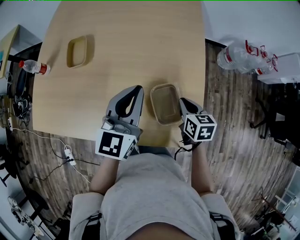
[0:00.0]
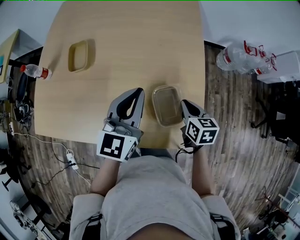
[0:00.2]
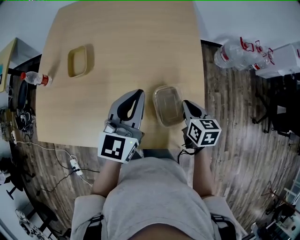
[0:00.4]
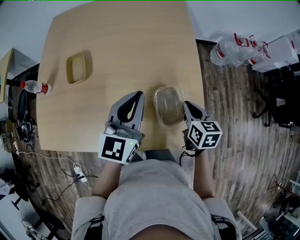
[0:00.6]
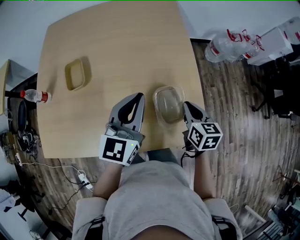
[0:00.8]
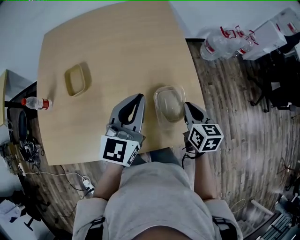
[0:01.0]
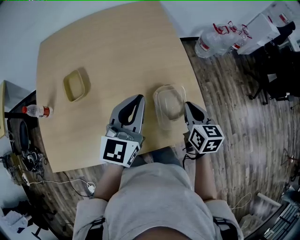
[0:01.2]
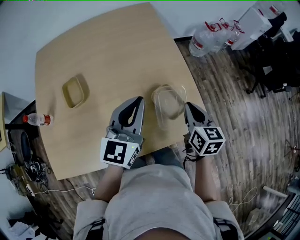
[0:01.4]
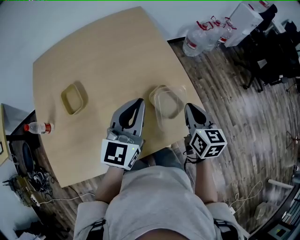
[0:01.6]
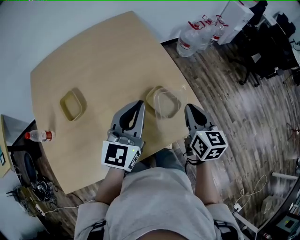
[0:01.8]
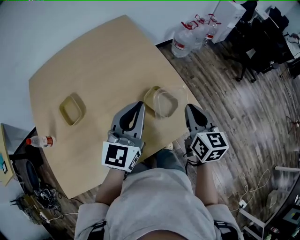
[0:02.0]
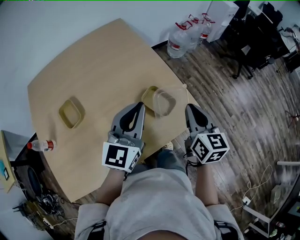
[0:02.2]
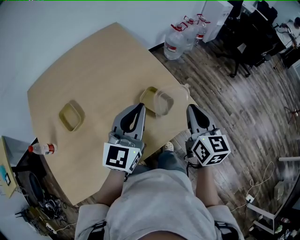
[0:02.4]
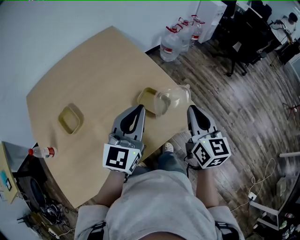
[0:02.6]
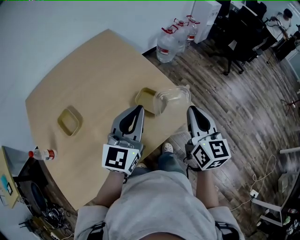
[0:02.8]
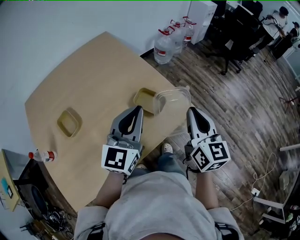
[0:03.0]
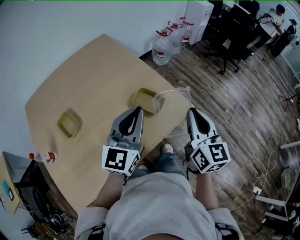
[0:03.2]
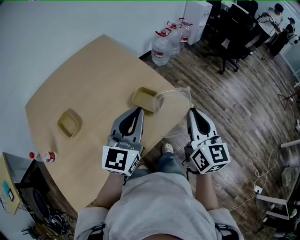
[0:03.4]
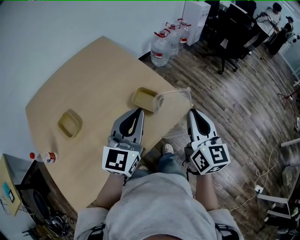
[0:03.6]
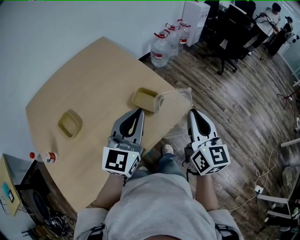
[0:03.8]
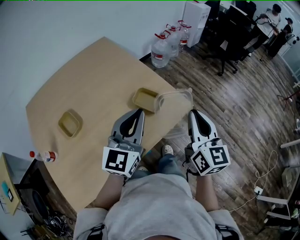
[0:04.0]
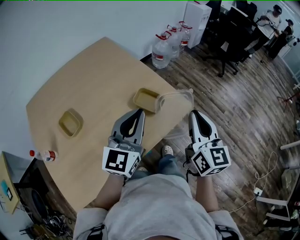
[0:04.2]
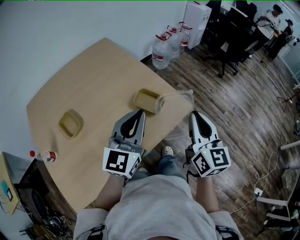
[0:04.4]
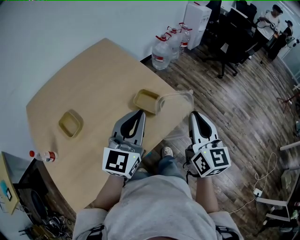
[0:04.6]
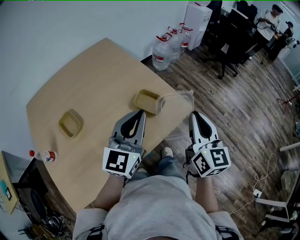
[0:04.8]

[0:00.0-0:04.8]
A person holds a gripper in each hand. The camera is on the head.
0:00.0 to 0:01.6: The right gripper travels upward by roughly 15 cm, and swivels roughly 40 degrees; the left gripper shifts by roughly 5 cm, and swivels about 30 degrees.
0:01.6 to 0:03.2: The right gripper is displaced backward, upward and to the right by some 20 cm, and turns by about 30 degrees, while the left gripper heads backward and to the right, covering approximately 10 cm.
0:03.2 to 0:04.8: The grippers make only small movements.

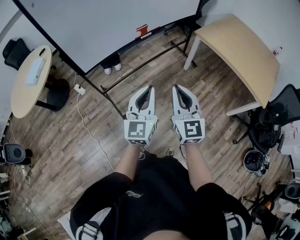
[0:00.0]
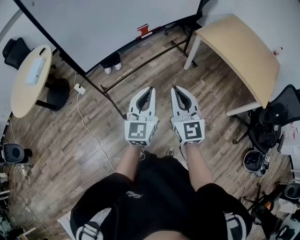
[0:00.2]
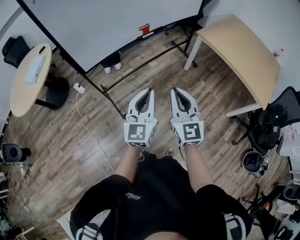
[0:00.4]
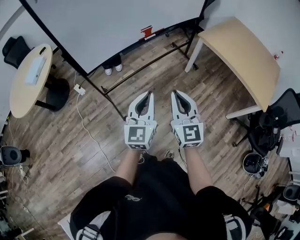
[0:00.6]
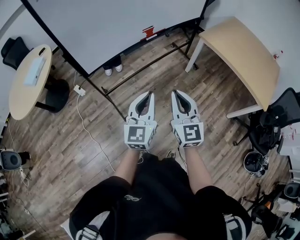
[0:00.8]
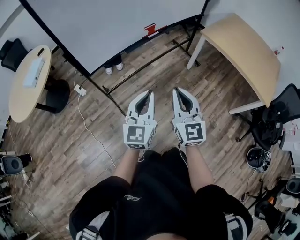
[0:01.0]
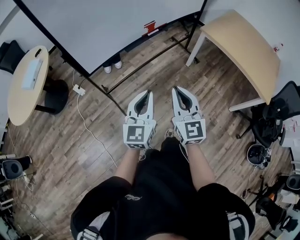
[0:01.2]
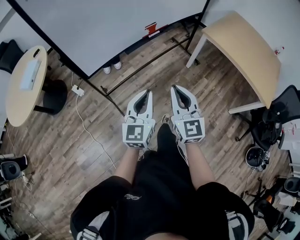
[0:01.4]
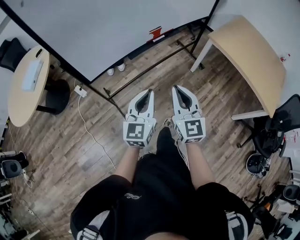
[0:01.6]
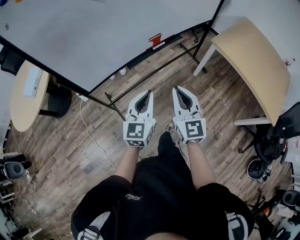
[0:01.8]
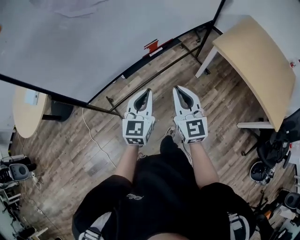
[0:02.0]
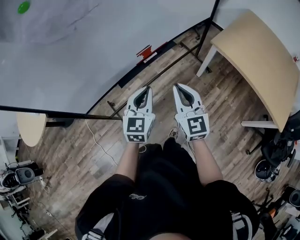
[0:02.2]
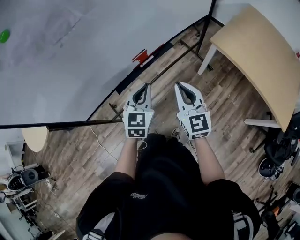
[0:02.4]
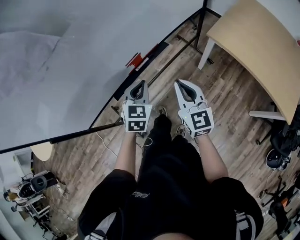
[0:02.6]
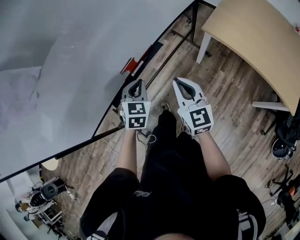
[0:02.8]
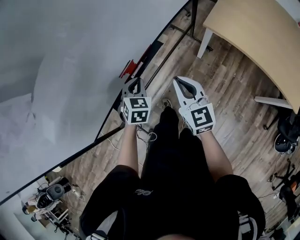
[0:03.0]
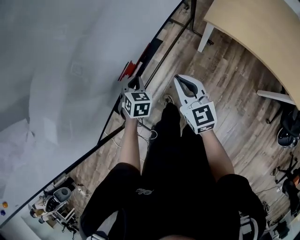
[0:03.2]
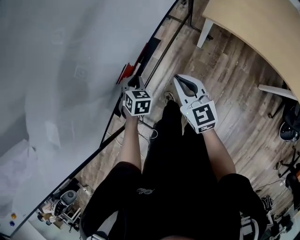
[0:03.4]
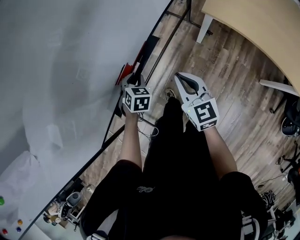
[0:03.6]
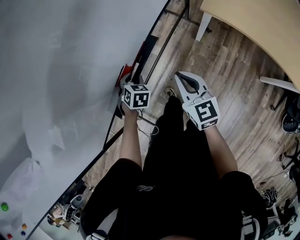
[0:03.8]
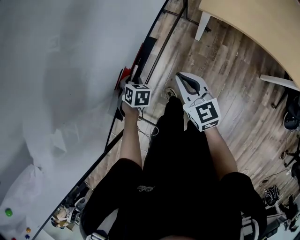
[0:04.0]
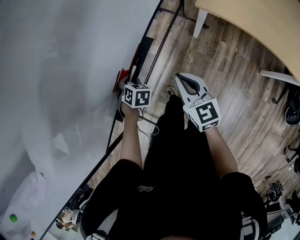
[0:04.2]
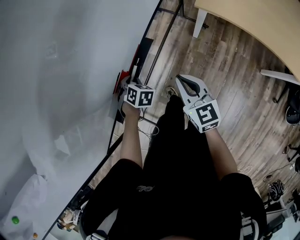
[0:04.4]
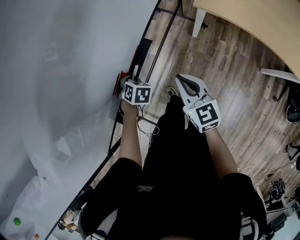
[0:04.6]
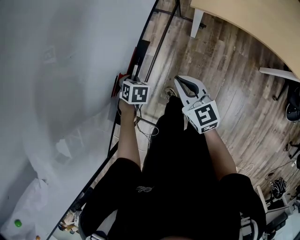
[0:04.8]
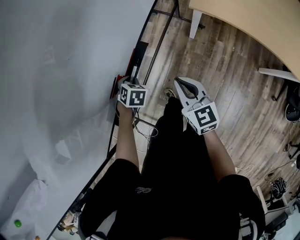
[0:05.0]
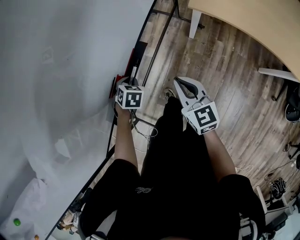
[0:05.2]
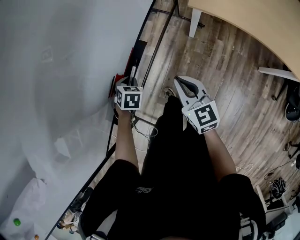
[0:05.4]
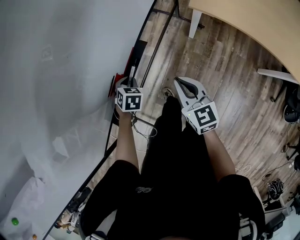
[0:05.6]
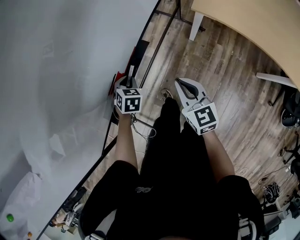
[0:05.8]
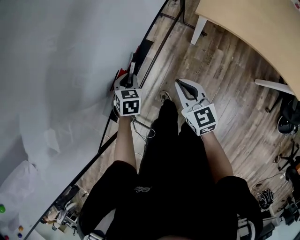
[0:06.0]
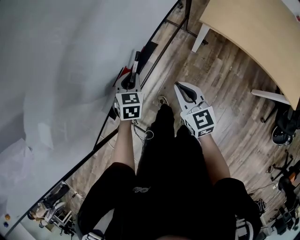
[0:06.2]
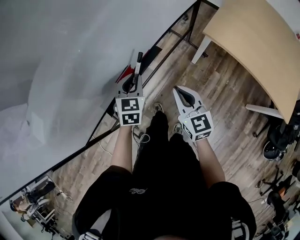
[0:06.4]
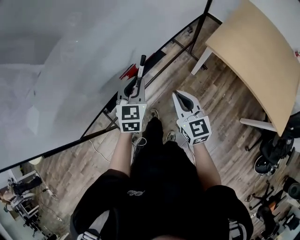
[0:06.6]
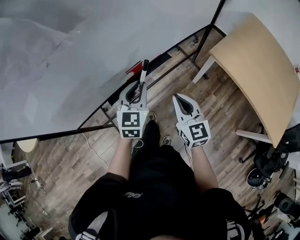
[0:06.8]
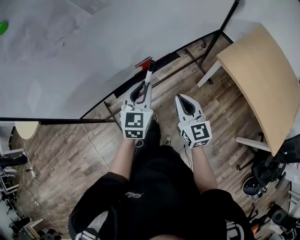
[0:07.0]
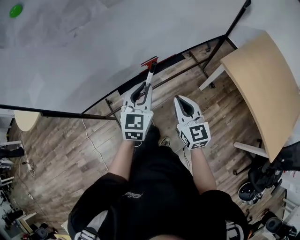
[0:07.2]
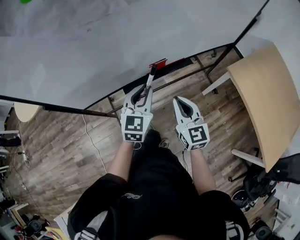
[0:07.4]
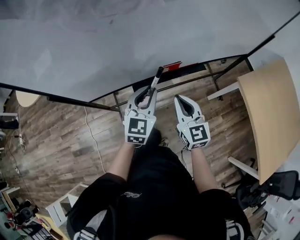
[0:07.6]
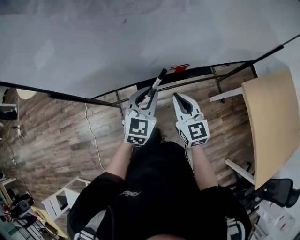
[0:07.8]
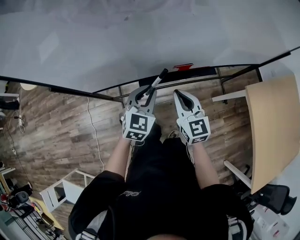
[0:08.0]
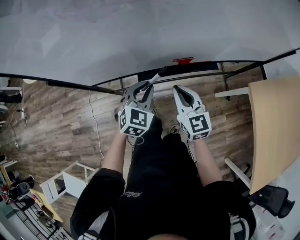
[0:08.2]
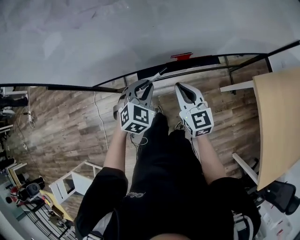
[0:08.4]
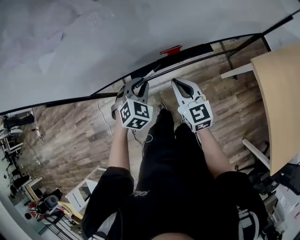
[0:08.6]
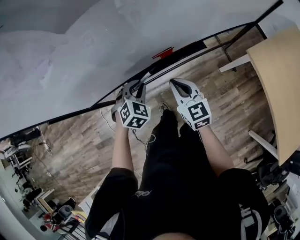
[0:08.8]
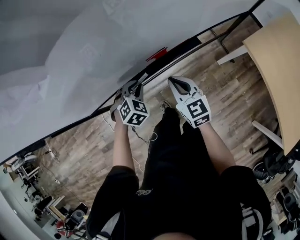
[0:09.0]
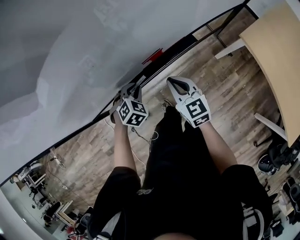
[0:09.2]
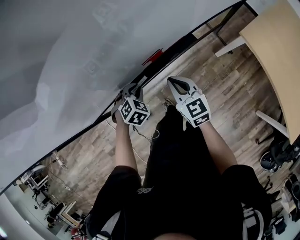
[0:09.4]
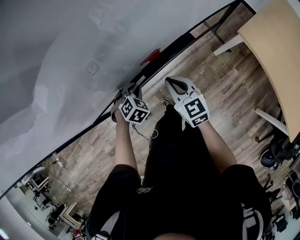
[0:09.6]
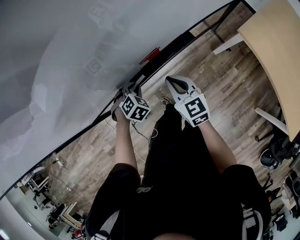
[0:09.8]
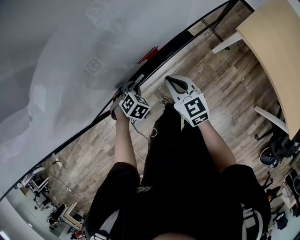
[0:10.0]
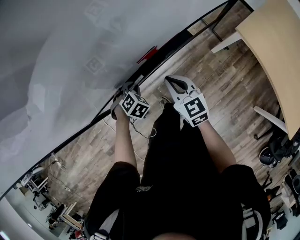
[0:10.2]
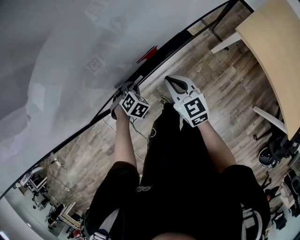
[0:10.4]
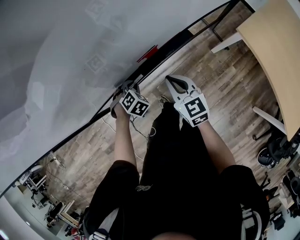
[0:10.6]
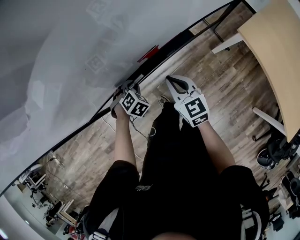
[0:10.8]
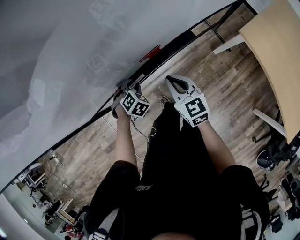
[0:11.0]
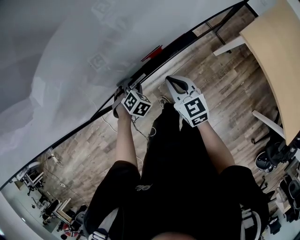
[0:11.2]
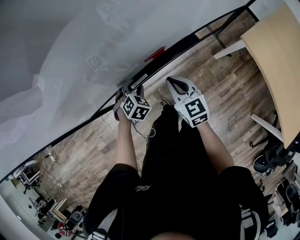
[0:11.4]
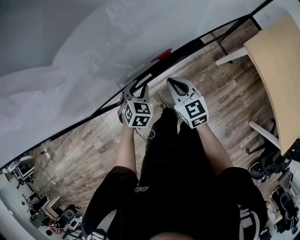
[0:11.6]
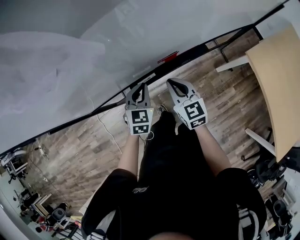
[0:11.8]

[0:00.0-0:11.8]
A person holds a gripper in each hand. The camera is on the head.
0:00.0 to 0:01.4: The right gripper moves to the left and forward, approximately 10 cm. Meanwhile the left gripper moves to the left, forward and downward, some 15 cm.
0:01.4 to 0:03.0: The pair of grippers is taken forward, some 50 cm. The left gripper tilts its fingers roughly 40 degrees downward.
0:03.0 to 0:04.4: The left gripper goes roughly 15 cm downward and forward, and swivels approximately 30 degrees. Meanwhile the right gripper is displaced downward by approximately 10 cm.
0:04.4 to 0:06.0: The left gripper shifts by some 5 cm, and changes its angle by some 20 degrees.
0:06.0 to 0:07.4: The right gripper goes some 20 cm to the left, upward and backward, and changes its angle by approximately 30 degrees. The left gripper travels upward, backward and to the left by about 30 cm, and angles its fingers upward, by some 40 degrees.
0:07.4 to 0:08.8: The right gripper goes some 15 cm forward and downward, while the left gripper shifts roughly 15 cm downward and forward, and angles its fingers downward, by roughly 40 degrees.
0:08.8 to 0:10.4: The left gripper goes about 10 cm downward, and swivels some 20 degrees.
0:10.4 to 0:11.8: The right gripper shifts by some 5 cm. Meanwhile the left gripper heads upward, covering about 10 cm, and tilts its fingers some 30 degrees upward.

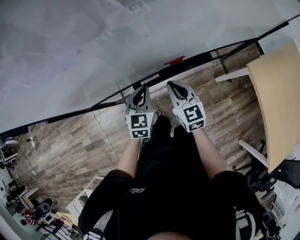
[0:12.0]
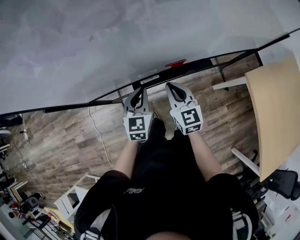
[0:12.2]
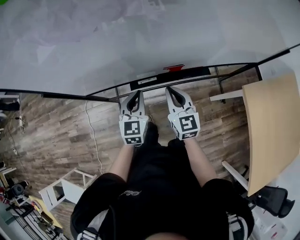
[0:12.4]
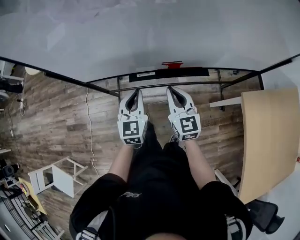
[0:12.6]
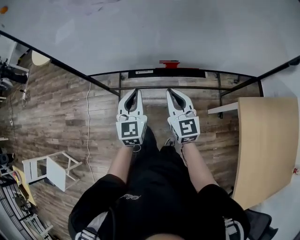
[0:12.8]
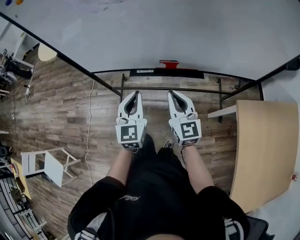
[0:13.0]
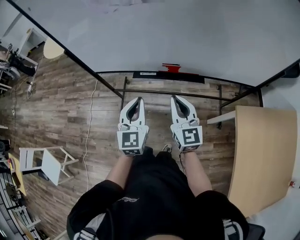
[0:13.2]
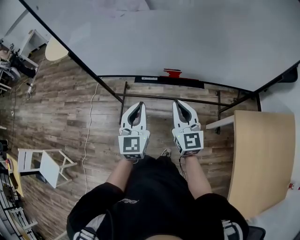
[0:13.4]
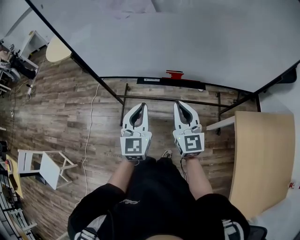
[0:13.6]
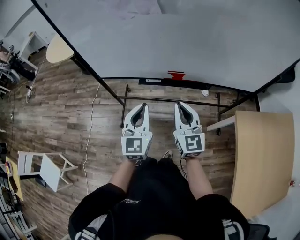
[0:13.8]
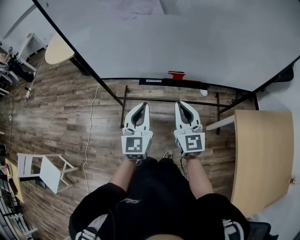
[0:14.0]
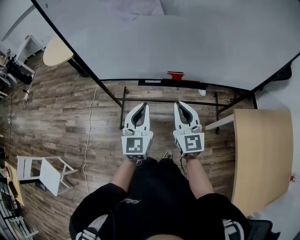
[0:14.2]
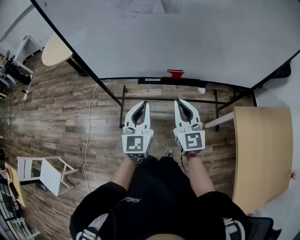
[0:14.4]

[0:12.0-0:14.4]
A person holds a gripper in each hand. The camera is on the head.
0:12.0 to 0:13.2: The left gripper travels backward and upward by approximately 25 cm, and rotates roughly 30 degrees. Meanwhile the right gripper heads backward, upward and to the right, covering roughly 20 cm, and rotates approximately 20 degrees.
0:13.2 to 0:14.4: The left gripper shifts by approximately 5 cm; the right gripper ends up about 5 cm from where it was.

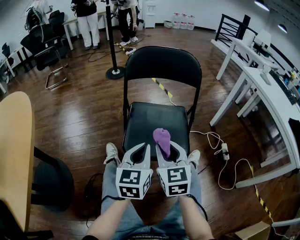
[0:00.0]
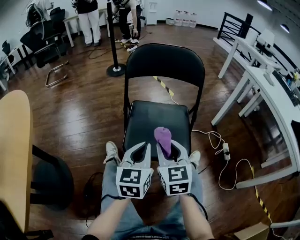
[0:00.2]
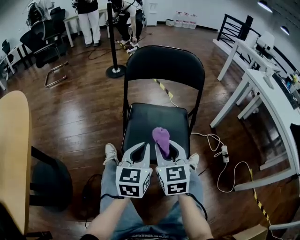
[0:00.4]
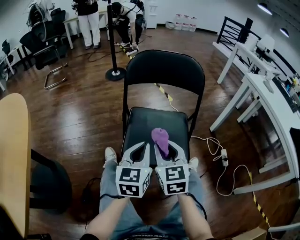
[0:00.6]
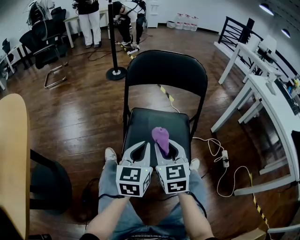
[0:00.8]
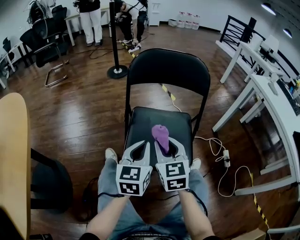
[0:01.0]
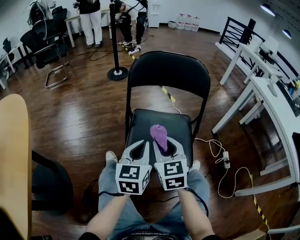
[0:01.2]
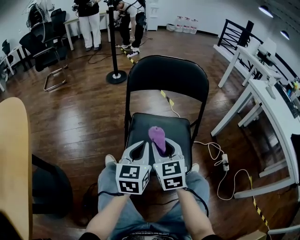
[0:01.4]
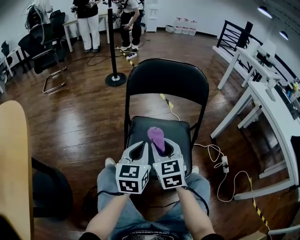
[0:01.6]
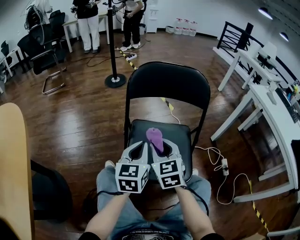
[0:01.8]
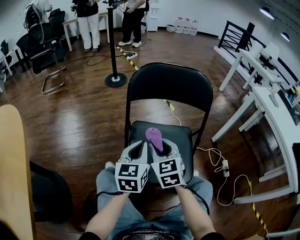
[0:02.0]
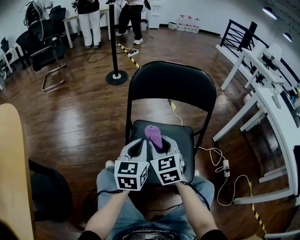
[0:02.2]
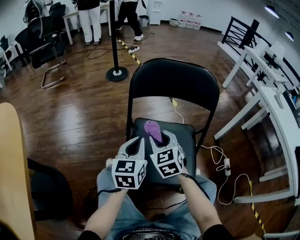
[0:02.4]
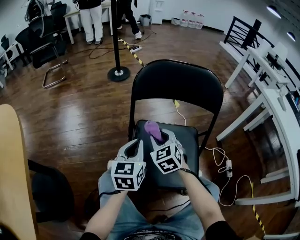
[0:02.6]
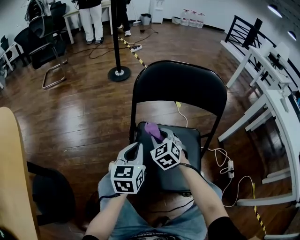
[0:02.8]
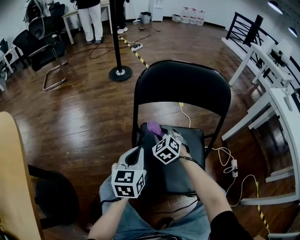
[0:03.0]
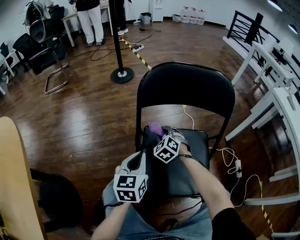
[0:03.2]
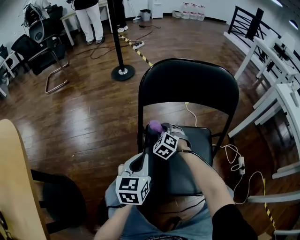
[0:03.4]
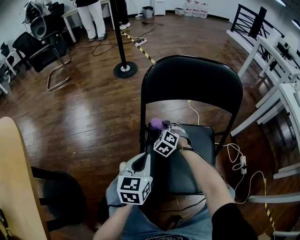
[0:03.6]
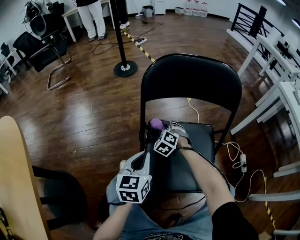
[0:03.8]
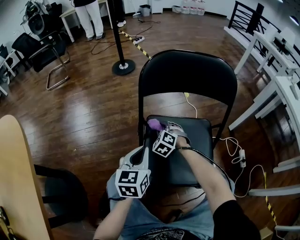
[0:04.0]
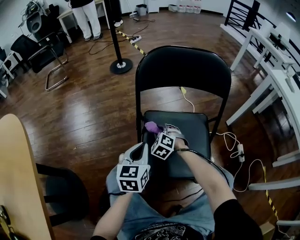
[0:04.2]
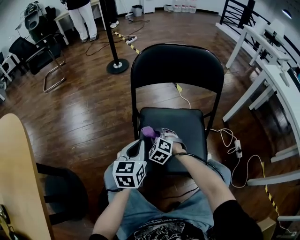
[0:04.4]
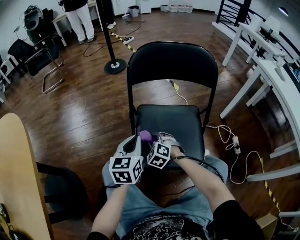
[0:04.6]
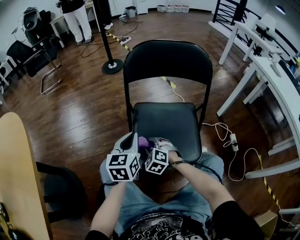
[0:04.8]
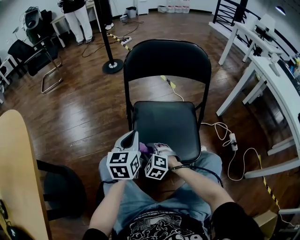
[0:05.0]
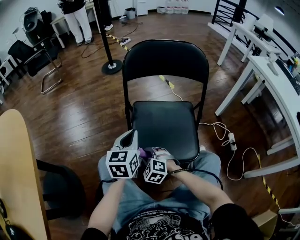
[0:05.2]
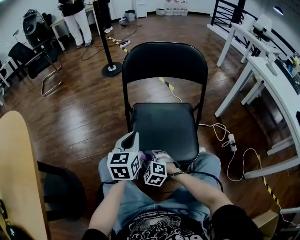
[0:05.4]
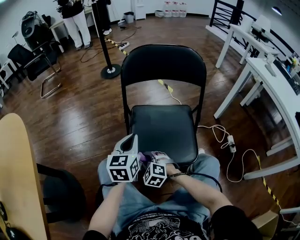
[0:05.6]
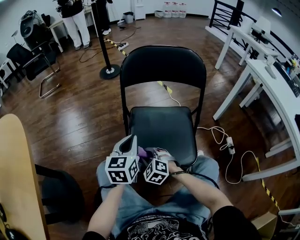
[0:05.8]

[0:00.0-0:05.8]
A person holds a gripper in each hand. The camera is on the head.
0:00.0 to 0:01.4: Both grippers move forward, some 10 cm.
0:01.4 to 0:02.8: The left gripper moves forward and to the left, approximately 15 cm. The right gripper moves forward and downward, approximately 20 cm, and turns by about 30 degrees.
0:02.8 to 0:04.4: The left gripper shifts by approximately 5 cm, while the right gripper shifts approximately 10 cm downward and backward.
0:04.4 to 0:05.8: The right gripper shifts roughly 15 cm backward; the left gripper moves approximately 5 cm.
